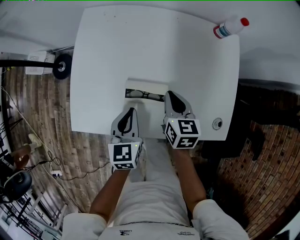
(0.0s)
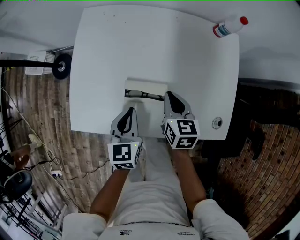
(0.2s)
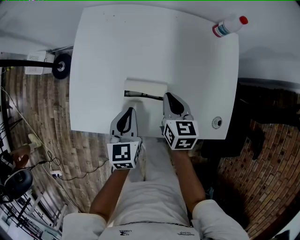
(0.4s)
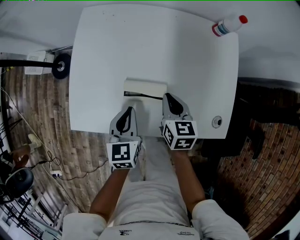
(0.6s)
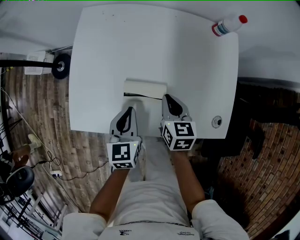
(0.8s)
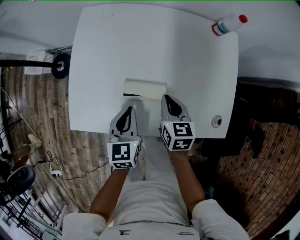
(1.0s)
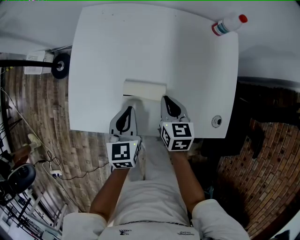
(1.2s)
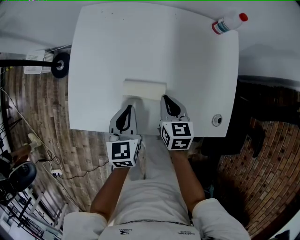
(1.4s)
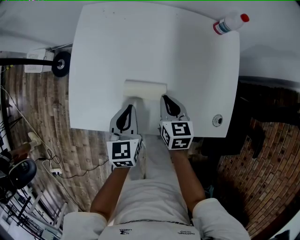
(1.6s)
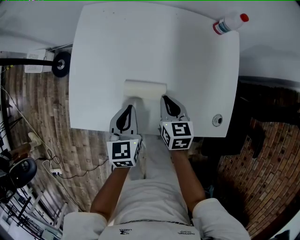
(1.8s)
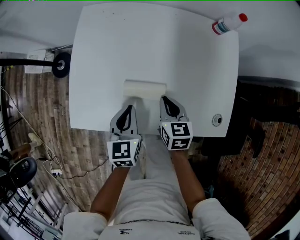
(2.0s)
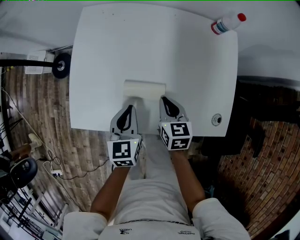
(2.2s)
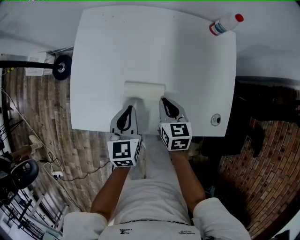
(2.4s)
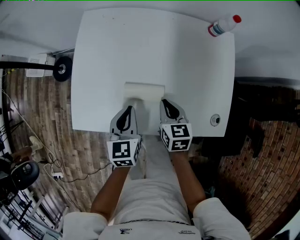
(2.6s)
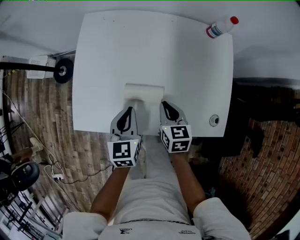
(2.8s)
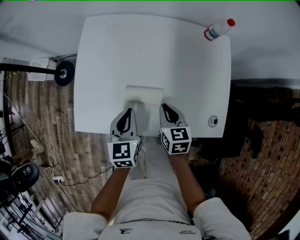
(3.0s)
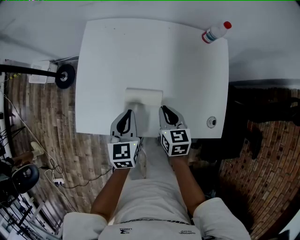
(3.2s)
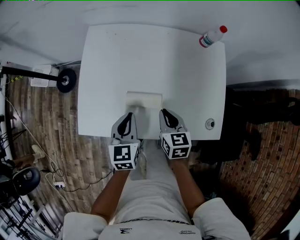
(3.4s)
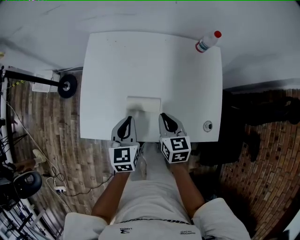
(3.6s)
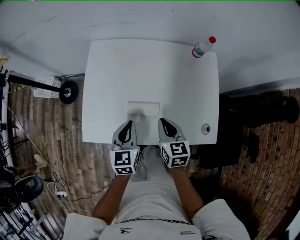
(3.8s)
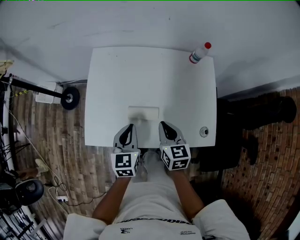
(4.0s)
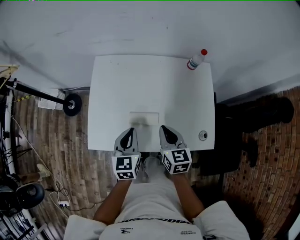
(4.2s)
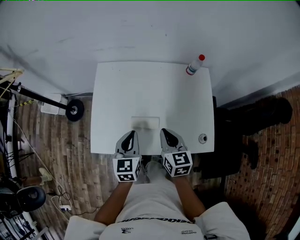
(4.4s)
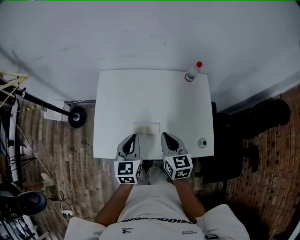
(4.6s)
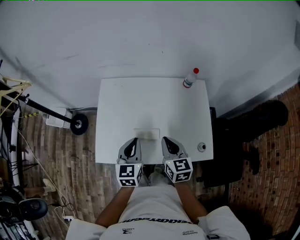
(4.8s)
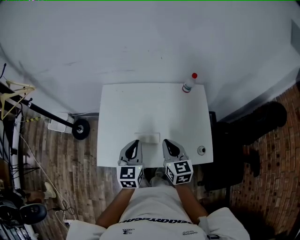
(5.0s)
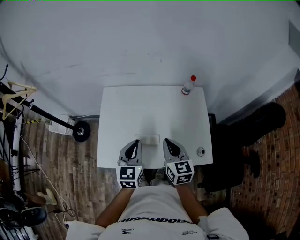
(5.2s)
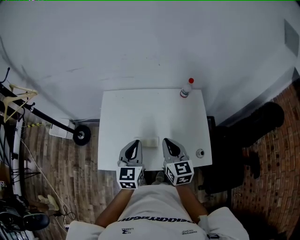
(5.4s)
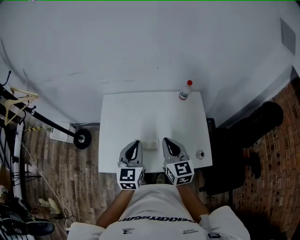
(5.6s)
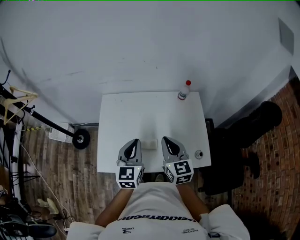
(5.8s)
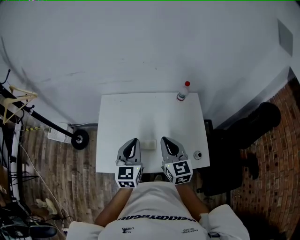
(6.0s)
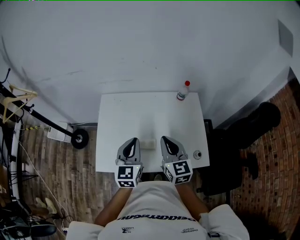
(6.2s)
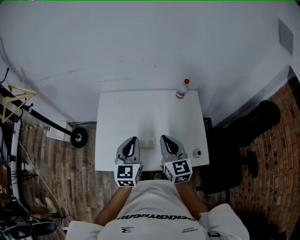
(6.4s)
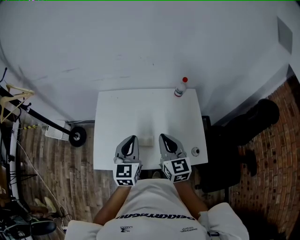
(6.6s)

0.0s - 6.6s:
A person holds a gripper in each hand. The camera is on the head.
0.0s - 3.2s: The grippers move only a little.
3.2s - 5.0s: Both grippers move upward, approximately 20 cm.
5.0s - 6.6s: Both grippers move upward, approximately 5 cm.

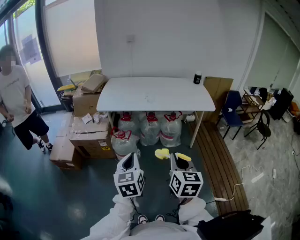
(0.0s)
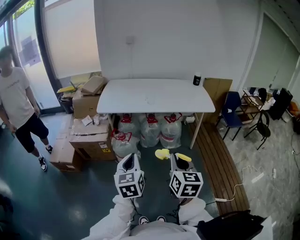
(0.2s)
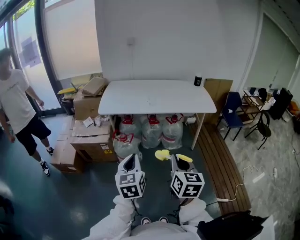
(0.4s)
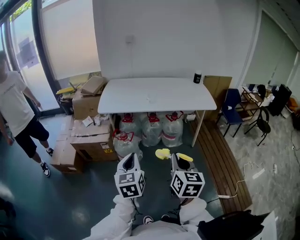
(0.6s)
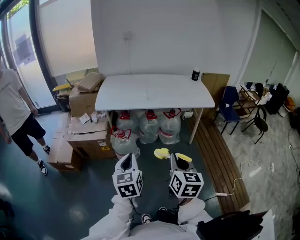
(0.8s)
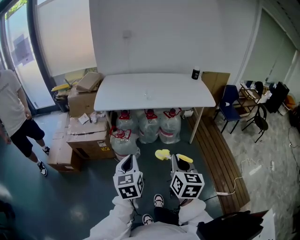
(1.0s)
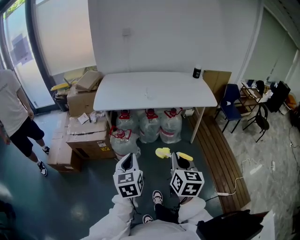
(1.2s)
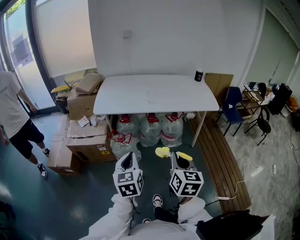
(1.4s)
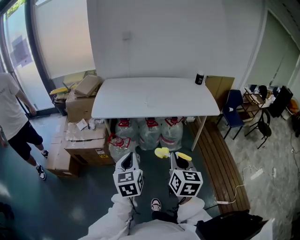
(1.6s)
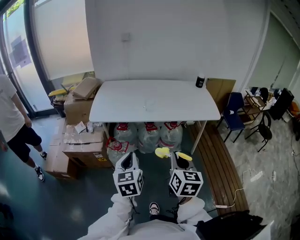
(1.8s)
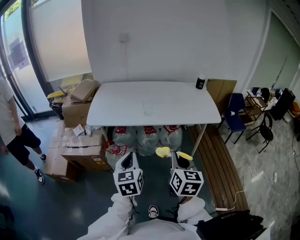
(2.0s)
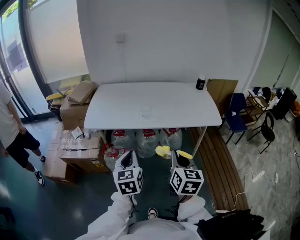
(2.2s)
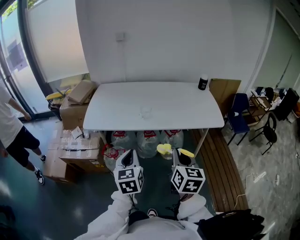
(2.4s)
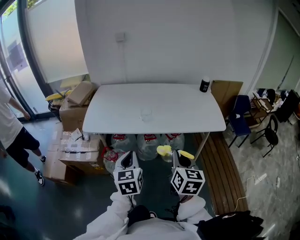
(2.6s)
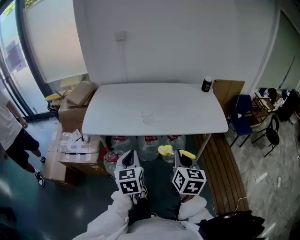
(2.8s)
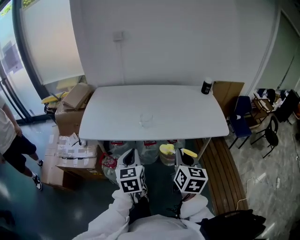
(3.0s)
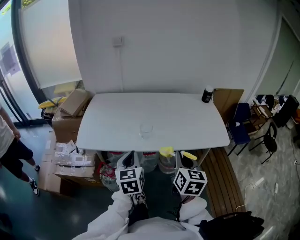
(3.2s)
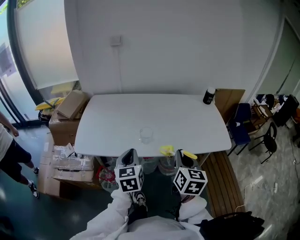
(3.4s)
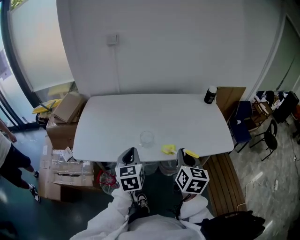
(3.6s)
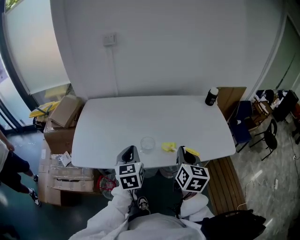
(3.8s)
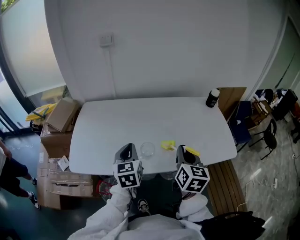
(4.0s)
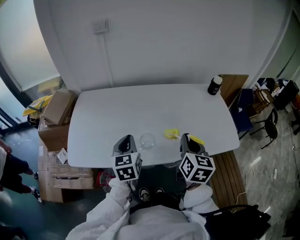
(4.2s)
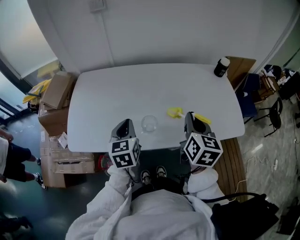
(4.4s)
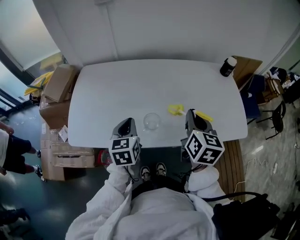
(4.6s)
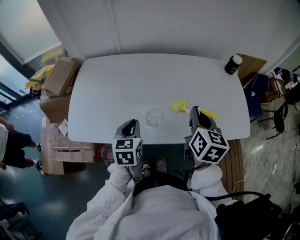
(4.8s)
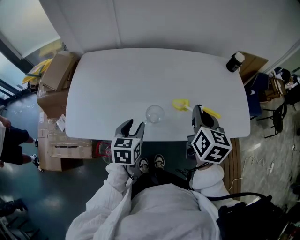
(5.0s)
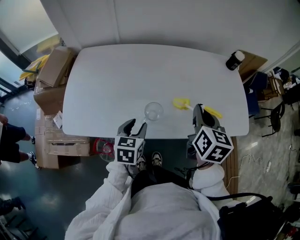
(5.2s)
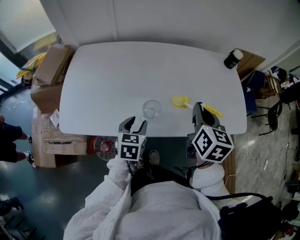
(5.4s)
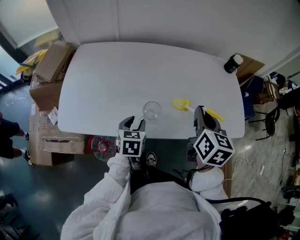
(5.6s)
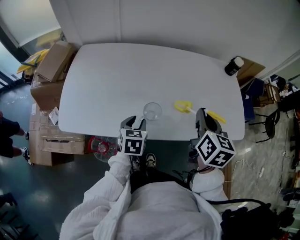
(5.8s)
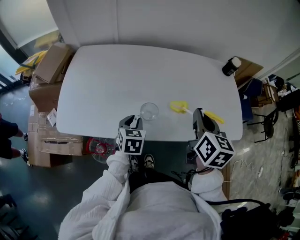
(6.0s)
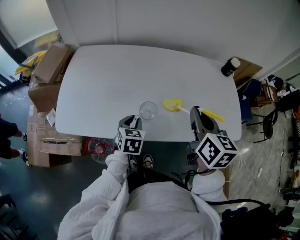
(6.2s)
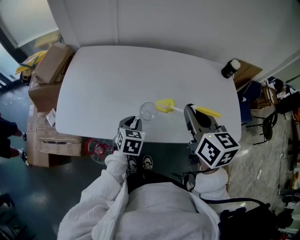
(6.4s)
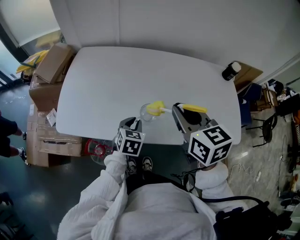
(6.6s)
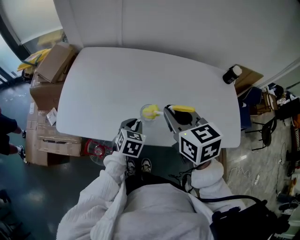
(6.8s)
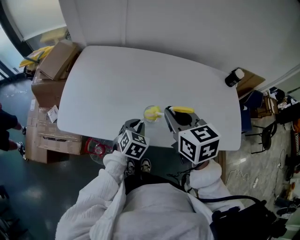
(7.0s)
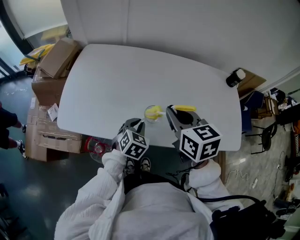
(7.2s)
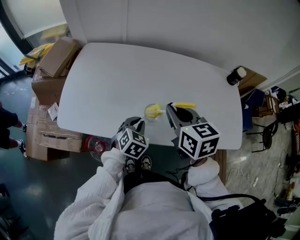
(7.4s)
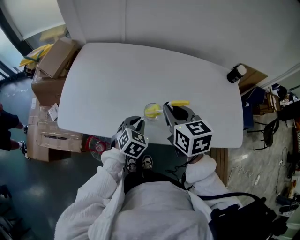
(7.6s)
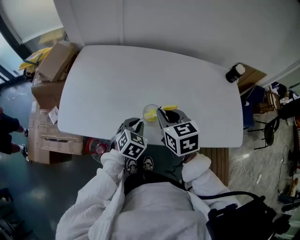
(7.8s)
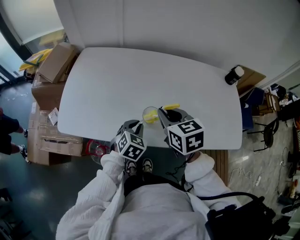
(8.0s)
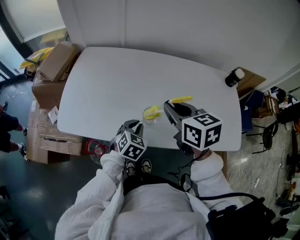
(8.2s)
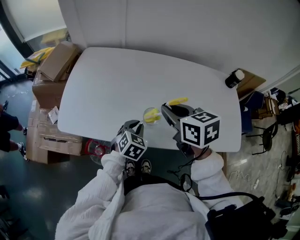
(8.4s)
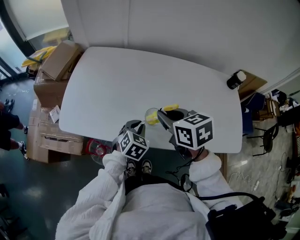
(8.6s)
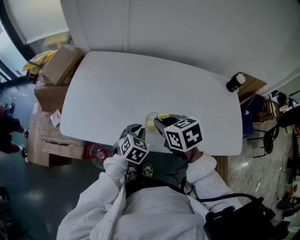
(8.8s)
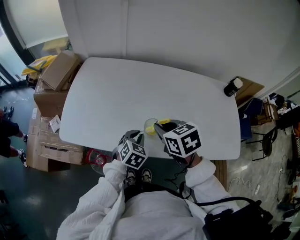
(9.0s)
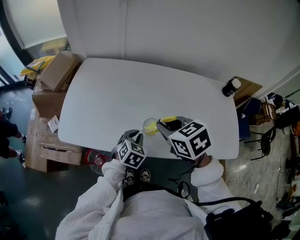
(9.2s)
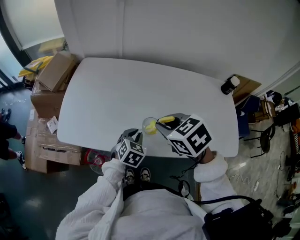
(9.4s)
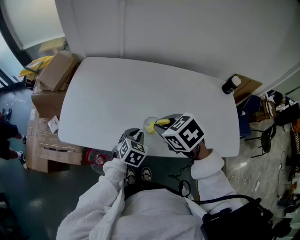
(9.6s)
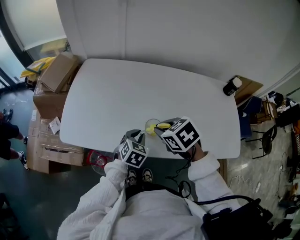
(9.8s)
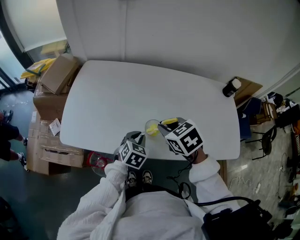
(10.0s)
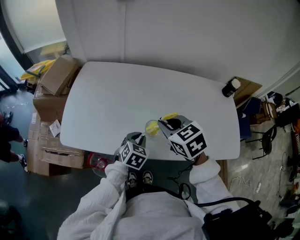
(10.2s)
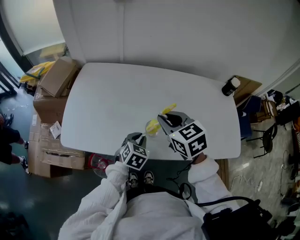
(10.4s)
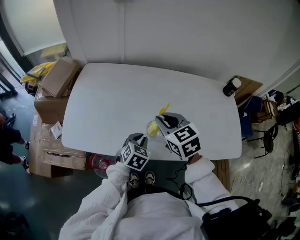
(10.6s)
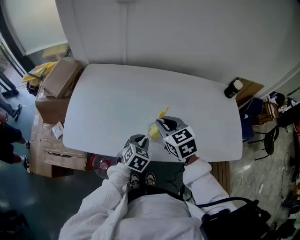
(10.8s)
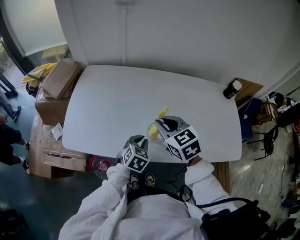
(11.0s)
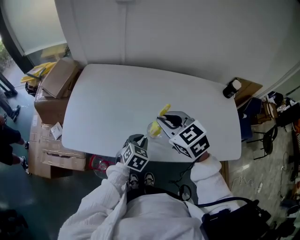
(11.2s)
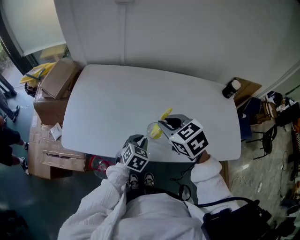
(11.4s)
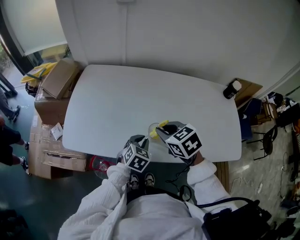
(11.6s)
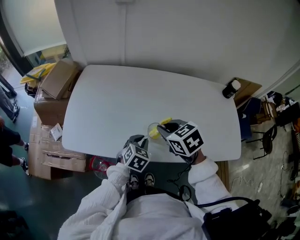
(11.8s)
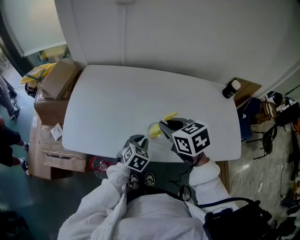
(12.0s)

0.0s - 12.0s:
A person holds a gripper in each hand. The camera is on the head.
0.0s - 1.6s: The two grippers go approximately 10 cm forward.
1.6s - 3.0s: The grippers both shift forward by some 25 cm.
3.0s - 4.4s: Both grippers travel together forward, some 30 cm.
4.4s - 6.0s: The left gripper moves downward, roughly 15 cm, rotates some 20 degrees, and opens its fingers.
6.0s - 7.6s: The right gripper moves to the left, about 10 cm, and turns by approximately 30 degrees. Meanwhile the left gripper swivels some 20 degrees.
7.6s - 9.0s: The right gripper rotates approximately 20 degrees.
9.0s - 10.4s: The right gripper moves up and down over approximately 5 cm, changing direction 2 times.
10.4s - 12.0s: The right gripper moves up and down over some 5 cm, changing direction 3 times.

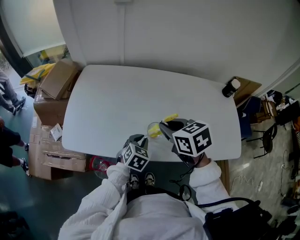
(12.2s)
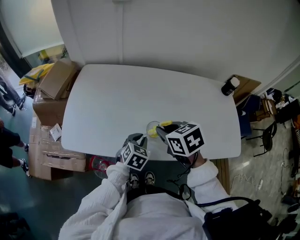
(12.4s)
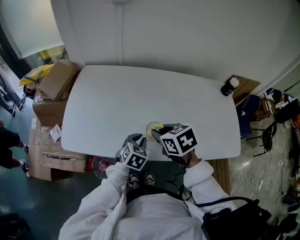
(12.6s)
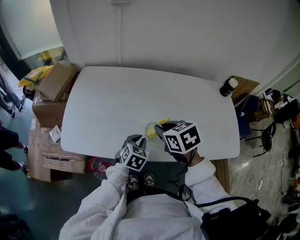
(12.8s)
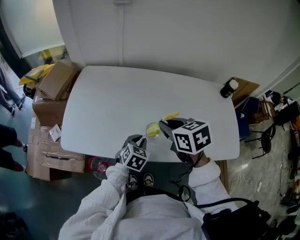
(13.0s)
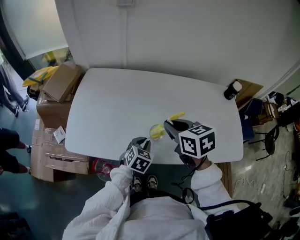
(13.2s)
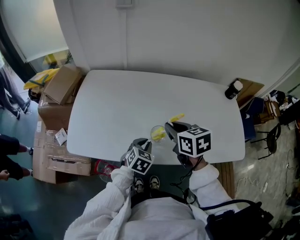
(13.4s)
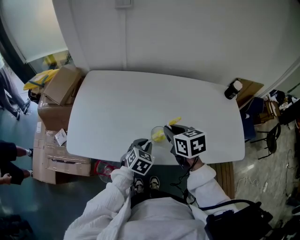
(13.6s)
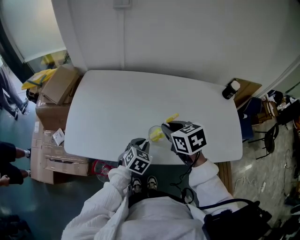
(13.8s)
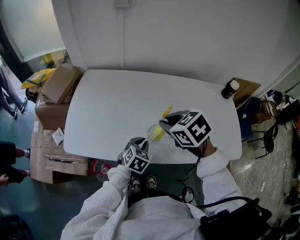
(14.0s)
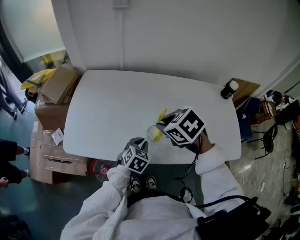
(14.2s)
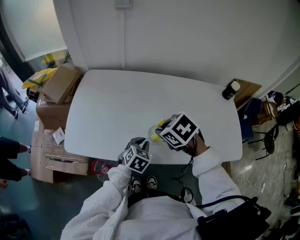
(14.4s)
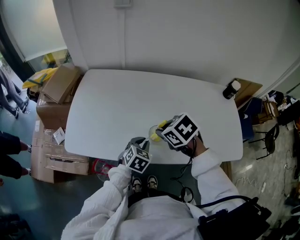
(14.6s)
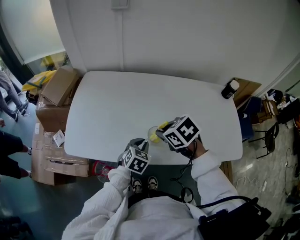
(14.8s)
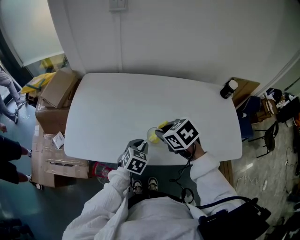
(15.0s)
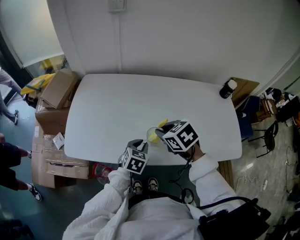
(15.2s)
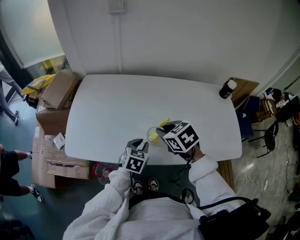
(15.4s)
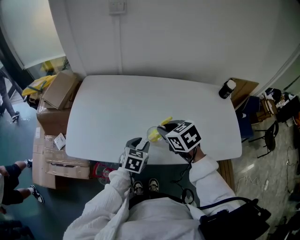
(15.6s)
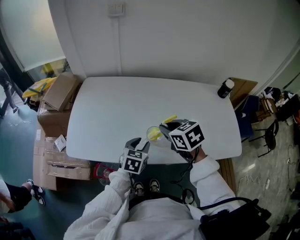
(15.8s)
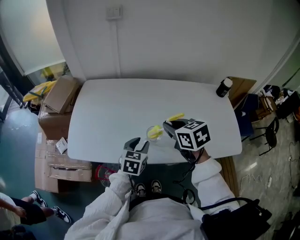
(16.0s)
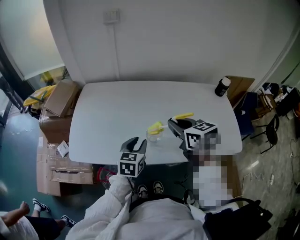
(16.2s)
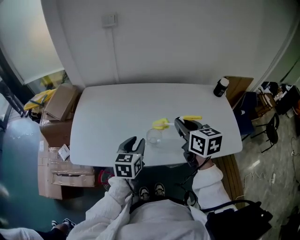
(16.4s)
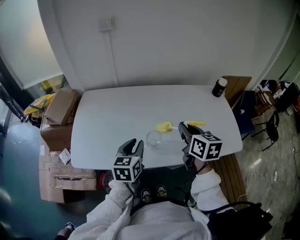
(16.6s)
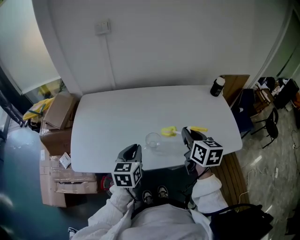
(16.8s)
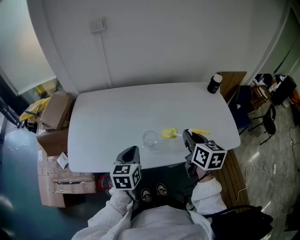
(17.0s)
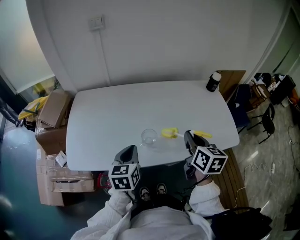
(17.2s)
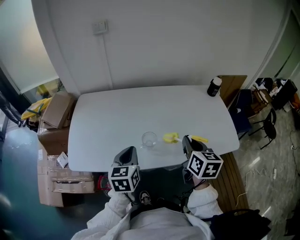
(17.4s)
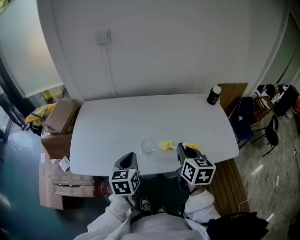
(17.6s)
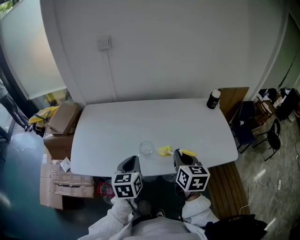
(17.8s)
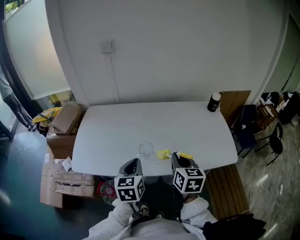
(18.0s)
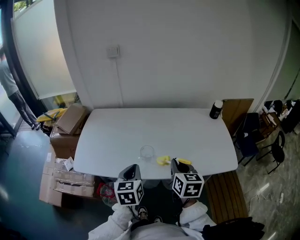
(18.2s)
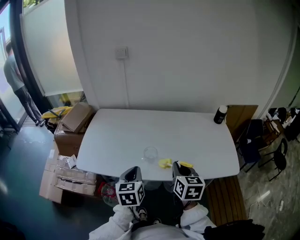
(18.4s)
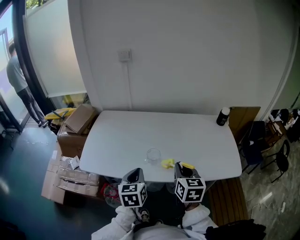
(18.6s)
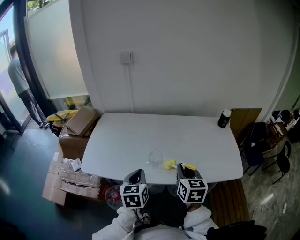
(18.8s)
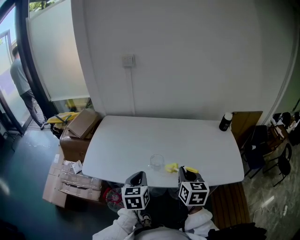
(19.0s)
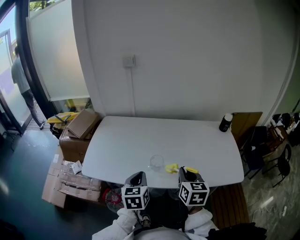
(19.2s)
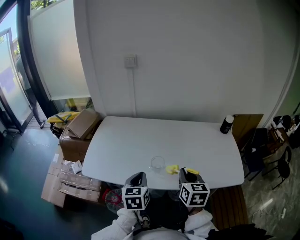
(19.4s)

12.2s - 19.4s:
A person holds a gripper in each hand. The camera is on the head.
12.2s - 13.6s: The right gripper moves up and down over about 5 cm, changing direction 2 times.
13.6s - 15.0s: The right gripper swivels roughly 30 degrees.
15.0s - 16.6s: The right gripper shifts roughly 15 cm to the right and upward, and tips its fingers upward by about 30 degrees; the left gripper heads upward, covering about 15 cm, and changes its angle by some 30 degrees.
16.6s - 18.0s: The grippers both shift backward by approximately 10 cm. The left gripper closes up.
18.0s - 19.4s: The grippers move only a little.
